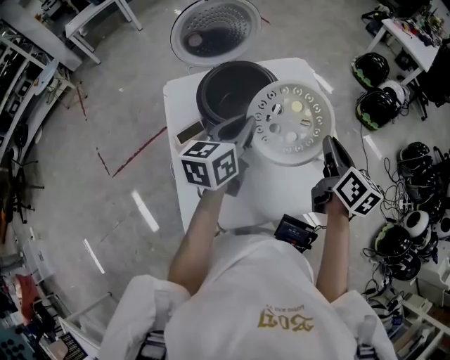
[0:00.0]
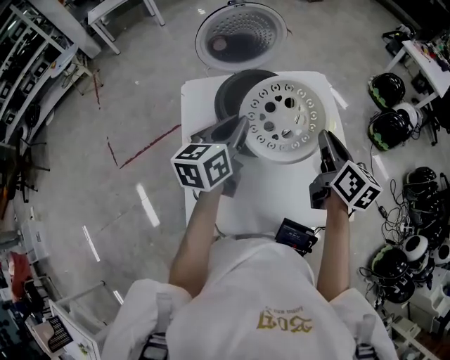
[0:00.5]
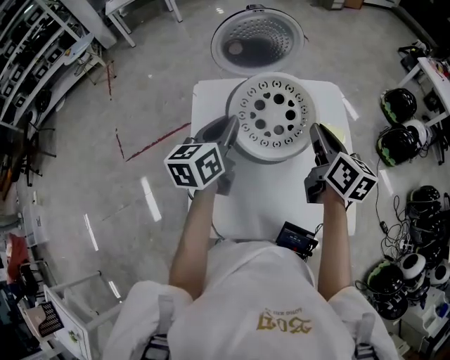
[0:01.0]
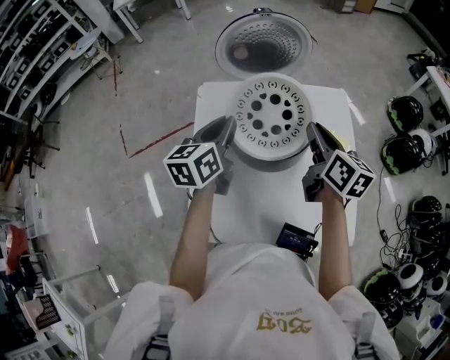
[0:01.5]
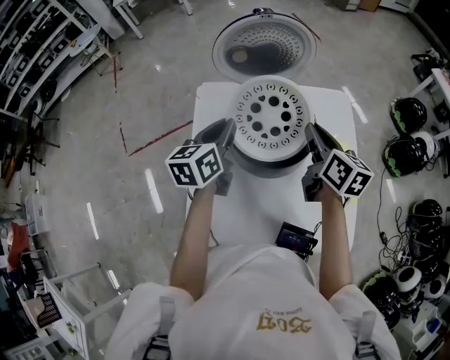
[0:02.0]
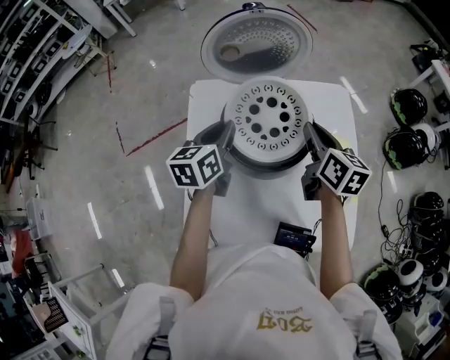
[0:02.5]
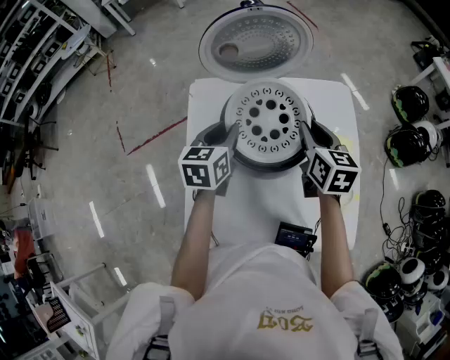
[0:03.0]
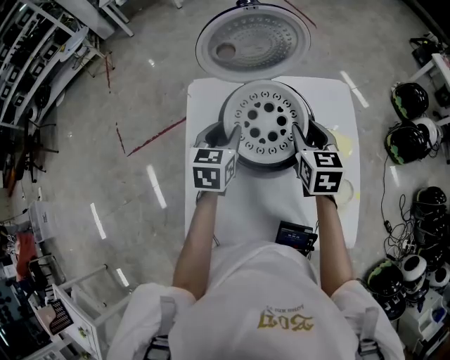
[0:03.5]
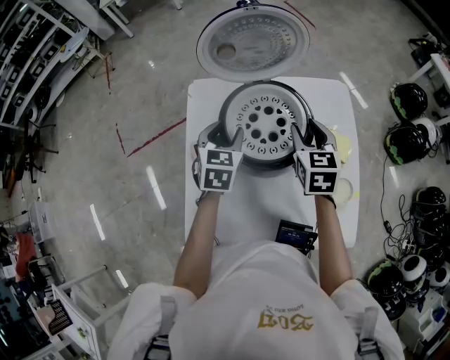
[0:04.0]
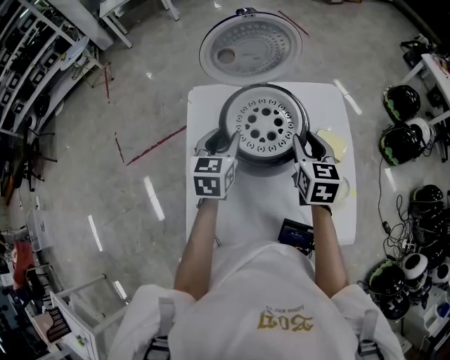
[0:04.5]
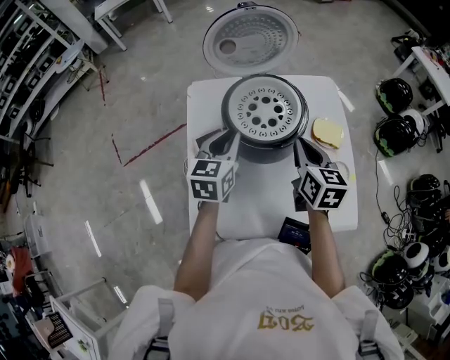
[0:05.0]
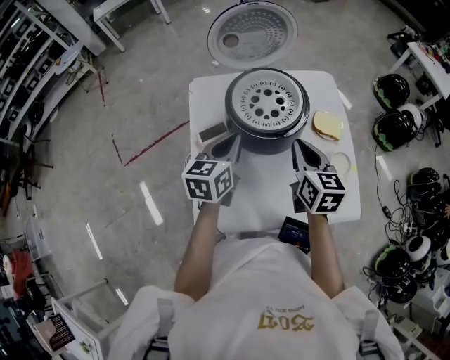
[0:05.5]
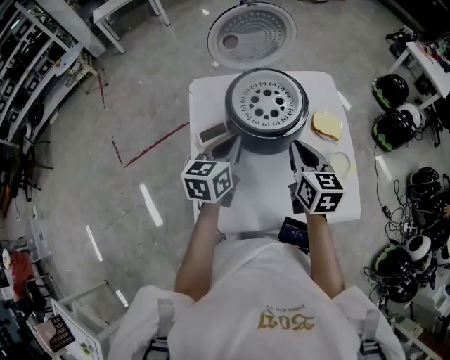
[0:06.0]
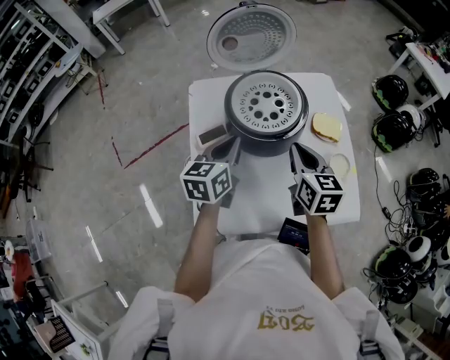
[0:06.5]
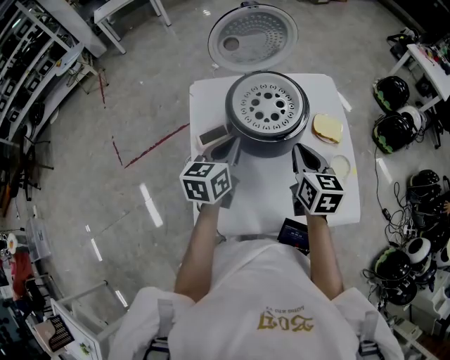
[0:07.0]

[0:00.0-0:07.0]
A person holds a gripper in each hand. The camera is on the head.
0:00.0 to 0:02.0: The left gripper is displaced to the left and forward by some 15 cm, and turns by about 20 degrees. The right gripper goes approximately 20 cm forward and to the left, and turns by about 20 degrees.
0:02.0 to 0:03.5: Both grippers travel together downward, some 5 cm. The left gripper swivels roughly 20 degrees, and opens up, while the right gripper turns by some 30 degrees, and opens its fingers.
0:03.5 to 0:05.0: Both grippers move backward, roughly 10 cm. The right gripper closes.
0:05.0 to 0:07.0: The grippers move only a little.

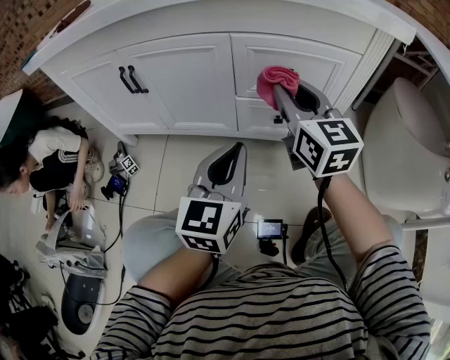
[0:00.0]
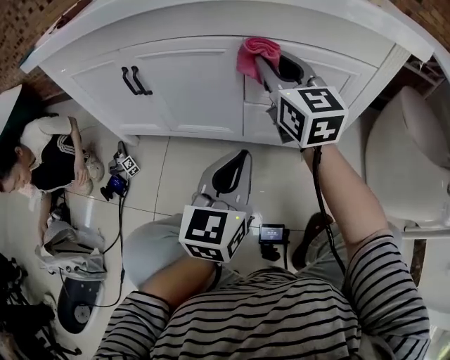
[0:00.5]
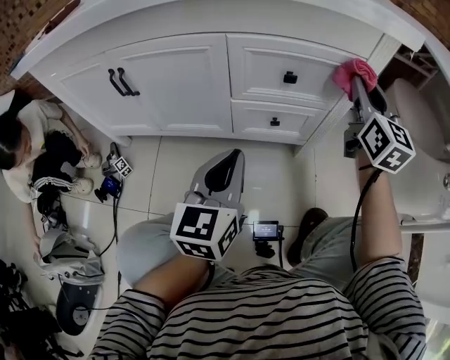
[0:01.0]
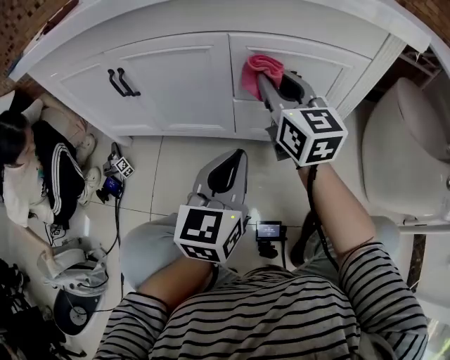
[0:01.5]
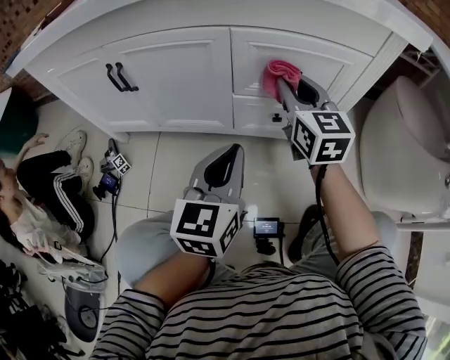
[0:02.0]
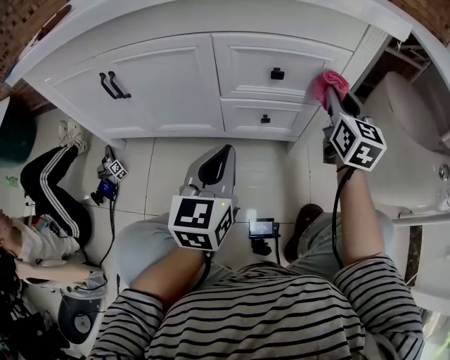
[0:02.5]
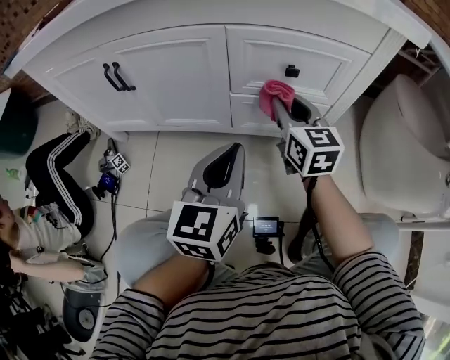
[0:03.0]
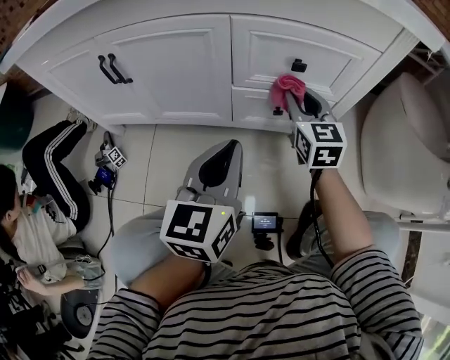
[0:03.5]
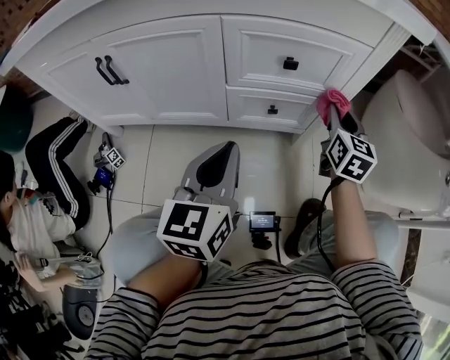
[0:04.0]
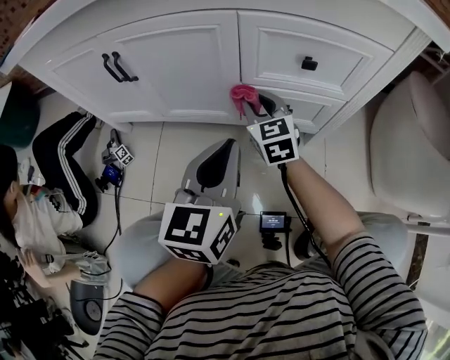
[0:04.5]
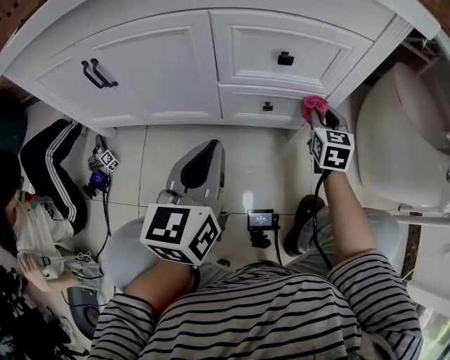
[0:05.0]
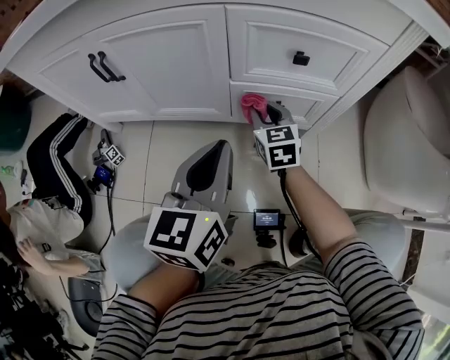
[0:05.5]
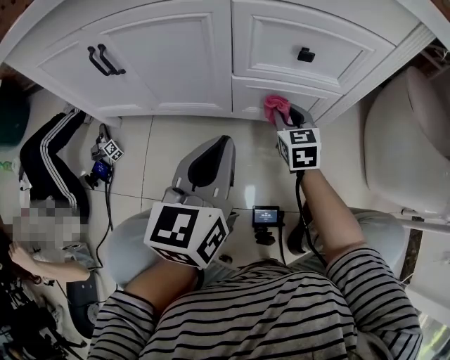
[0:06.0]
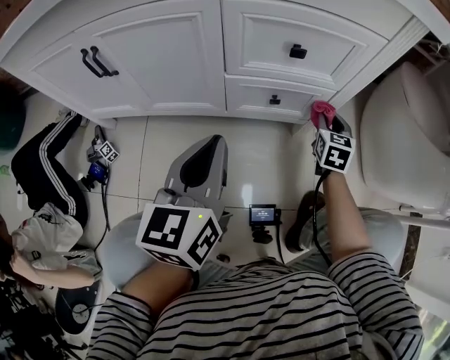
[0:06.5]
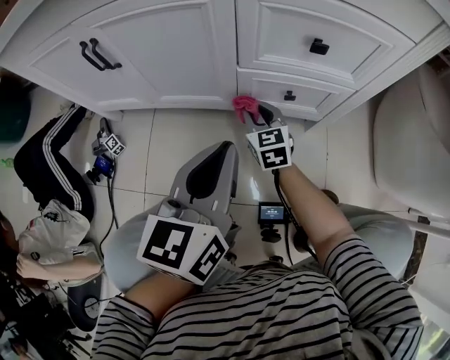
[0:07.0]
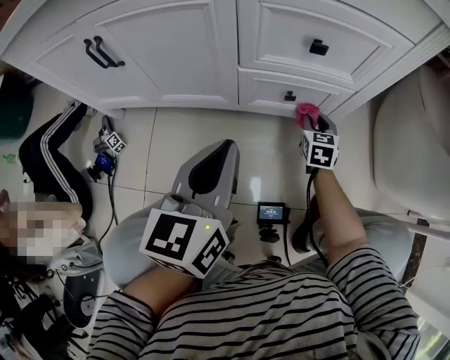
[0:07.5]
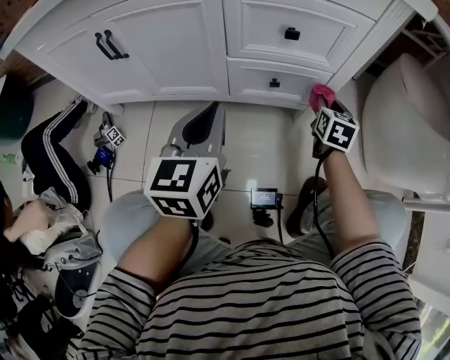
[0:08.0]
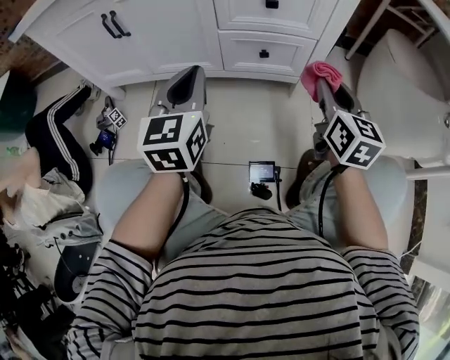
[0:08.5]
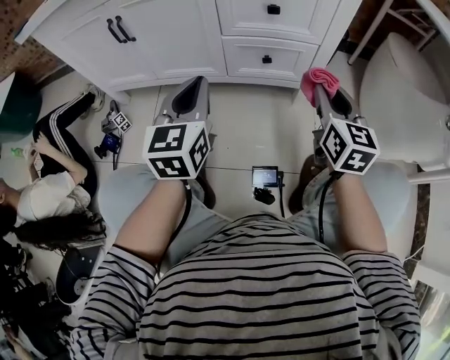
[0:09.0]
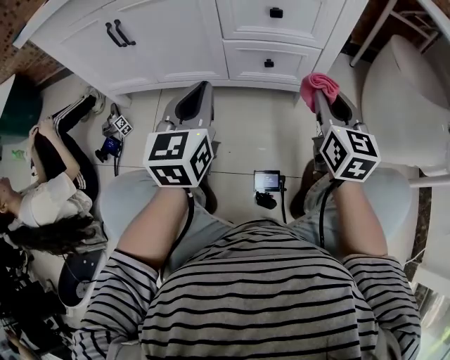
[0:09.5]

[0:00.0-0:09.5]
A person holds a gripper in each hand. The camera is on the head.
0:00.0 to 0:02.0: The right gripper goes left and right, some 25 cm each way, reversing 3 times.
0:02.0 to 0:04.0: The right gripper swings left and right, some 15 cm each way, with 2 reversals, and swivels roughly 20 degrees.
0:04.0 to 0:05.5: The right gripper goes left and right, approximately 25 cm each way, reversing 2 times, and turns by approximately 30 degrees.
0:05.5 to 0:07.5: The right gripper goes left and right, about 25 cm each way, reversing 2 times.
0:07.5 to 0:09.5: The right gripper shifts some 30 cm upward and backward, and turns by some 30 degrees.

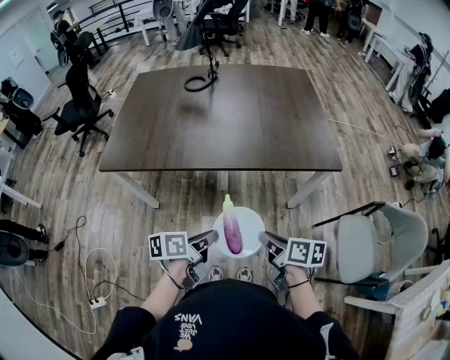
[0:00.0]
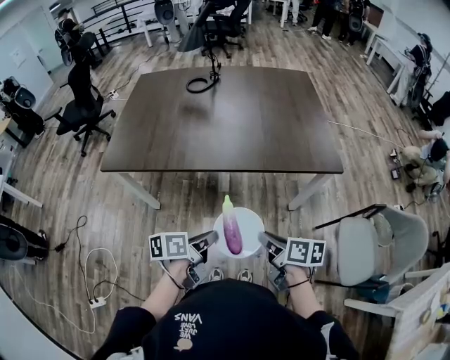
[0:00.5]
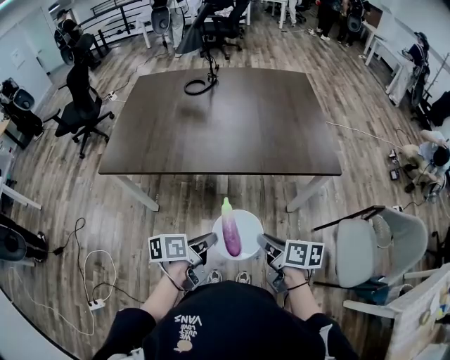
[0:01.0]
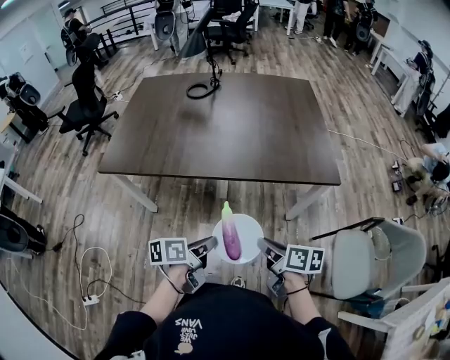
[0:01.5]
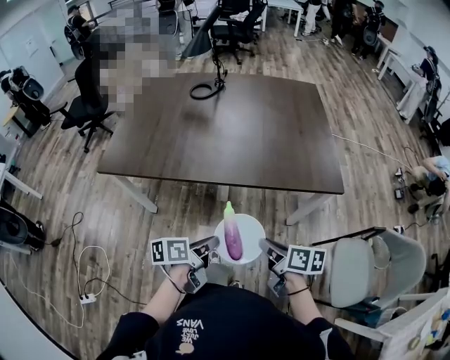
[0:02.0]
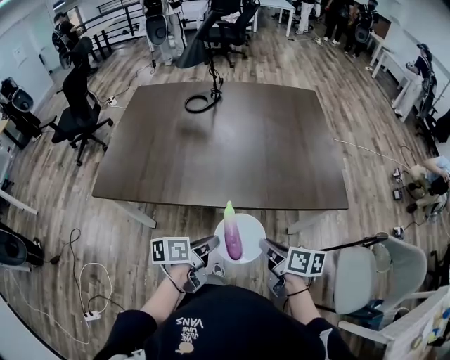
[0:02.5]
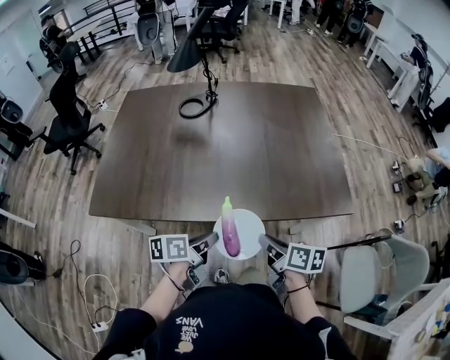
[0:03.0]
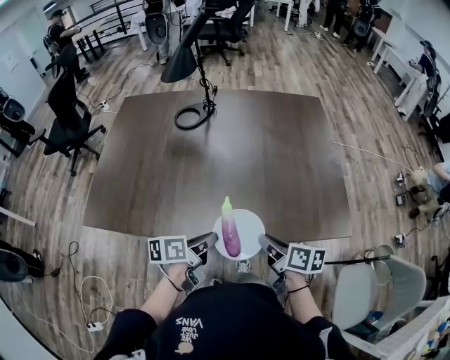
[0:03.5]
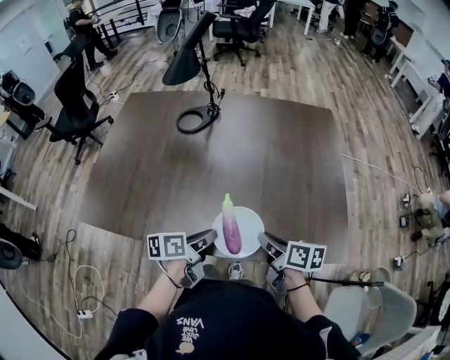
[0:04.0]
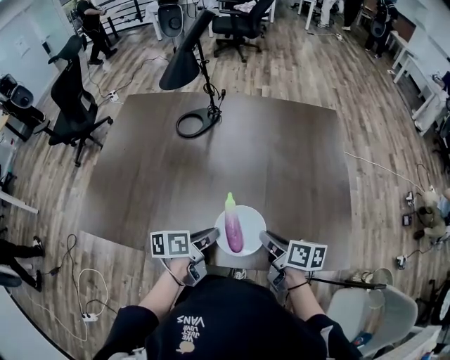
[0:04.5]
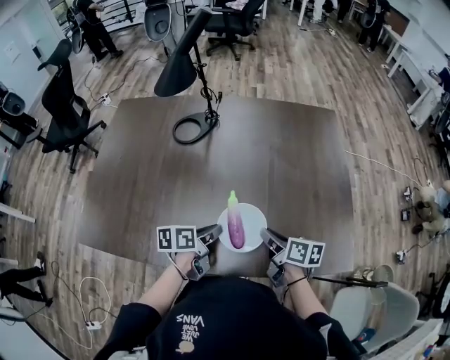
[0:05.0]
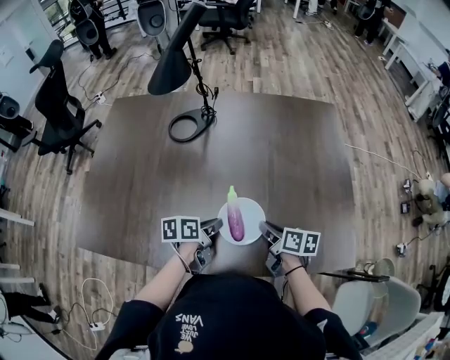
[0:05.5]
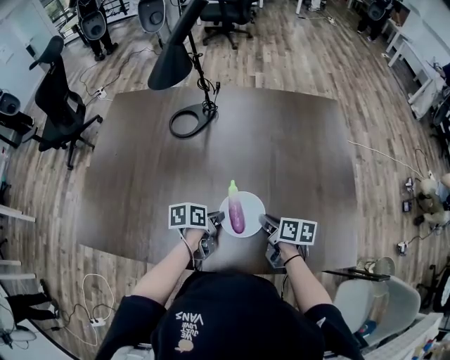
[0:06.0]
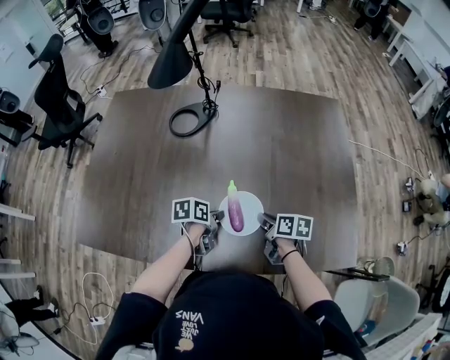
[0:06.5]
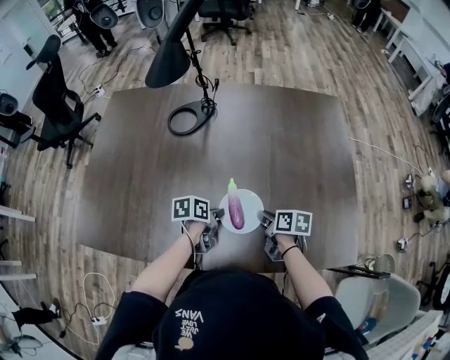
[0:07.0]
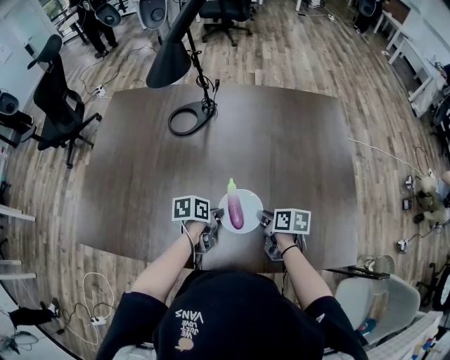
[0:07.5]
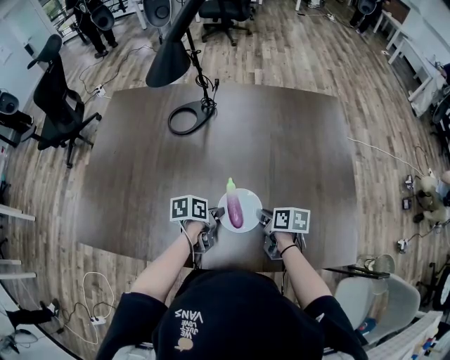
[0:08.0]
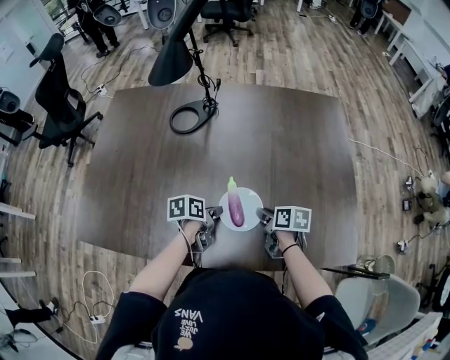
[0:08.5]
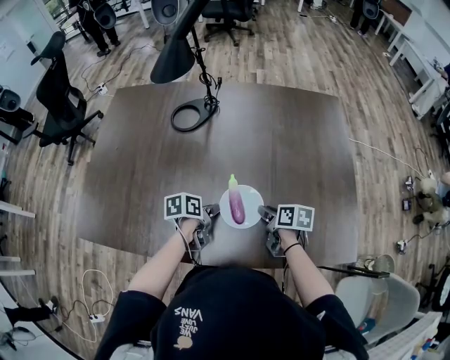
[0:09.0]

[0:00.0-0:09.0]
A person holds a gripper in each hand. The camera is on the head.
0:00.0 to 0:02.0: The right gripper is displaced forward by roughly 5 cm; the left gripper shifts by about 5 cm.
0:02.0 to 0:04.5: The two grippers go about 40 cm forward.
0:04.5 to 0:07.0: Both grippers travel together downward and forward, approximately 15 cm. The left gripper changes its angle by roughly 20 degrees.
0:07.0 to 0:09.0: The right gripper opens up.

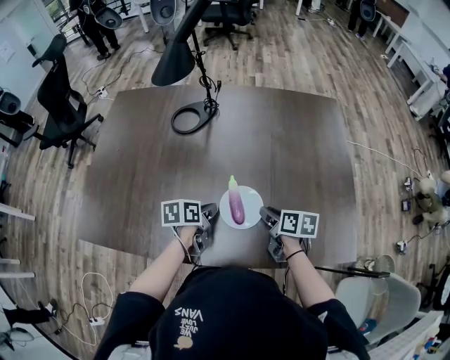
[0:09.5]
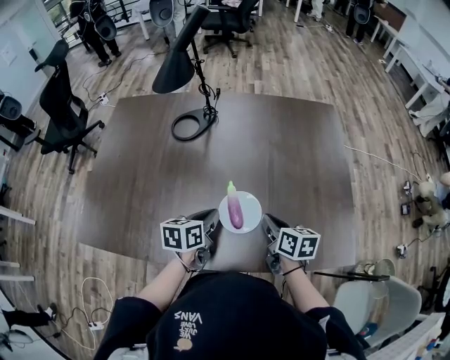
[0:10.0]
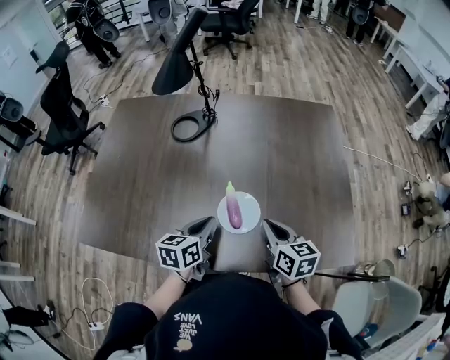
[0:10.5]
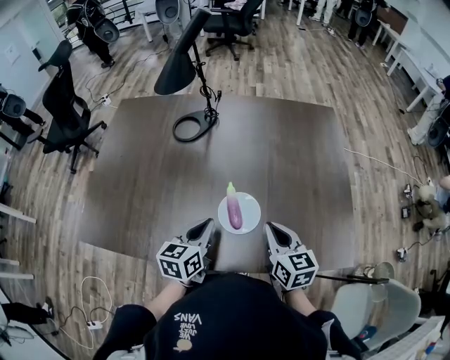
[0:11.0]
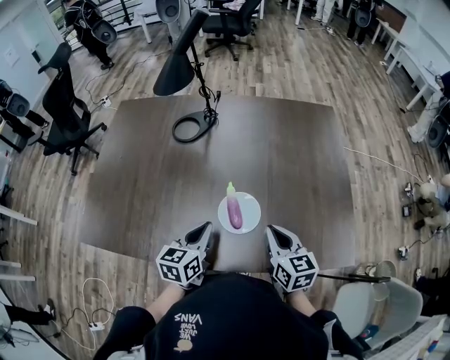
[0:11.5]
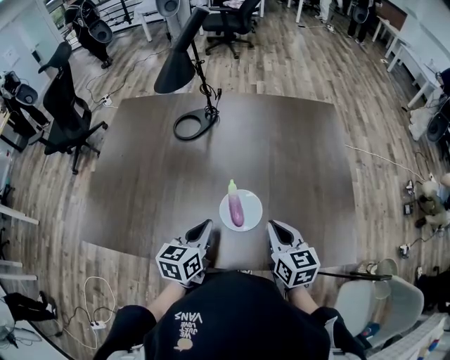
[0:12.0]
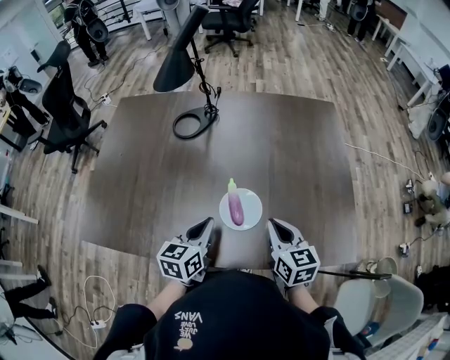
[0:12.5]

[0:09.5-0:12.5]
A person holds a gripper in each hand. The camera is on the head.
0:09.5 to 0:11.0: Both grippers move upward, approximately 10 cm. The left gripper swivels some 30 degrees. The right gripper rotates some 40 degrees, and closes.
0:11.0 to 0:12.5: The two grippers keep their place.
